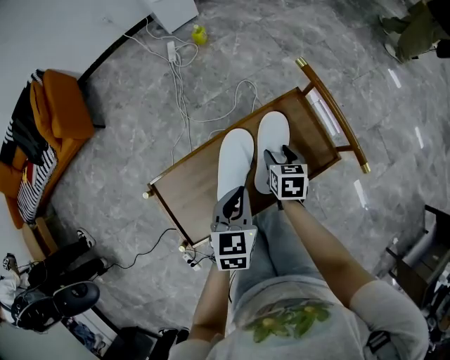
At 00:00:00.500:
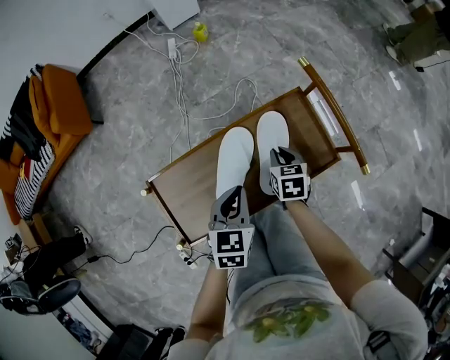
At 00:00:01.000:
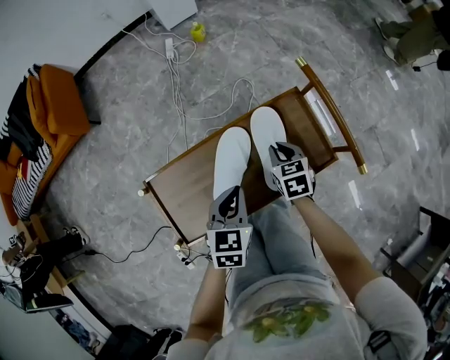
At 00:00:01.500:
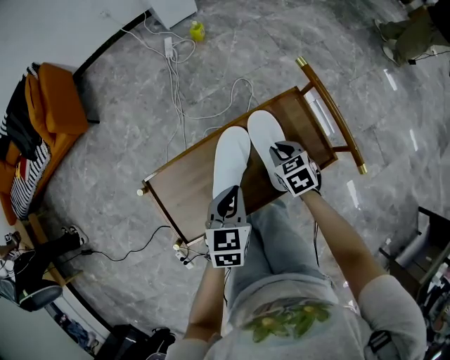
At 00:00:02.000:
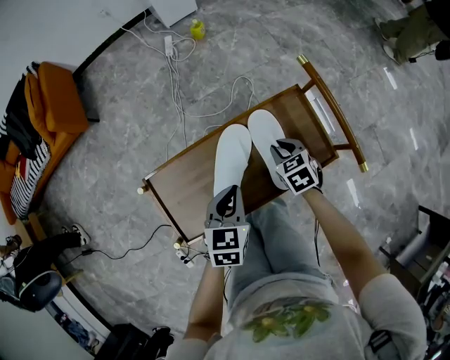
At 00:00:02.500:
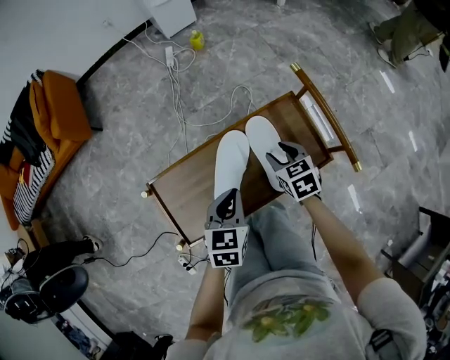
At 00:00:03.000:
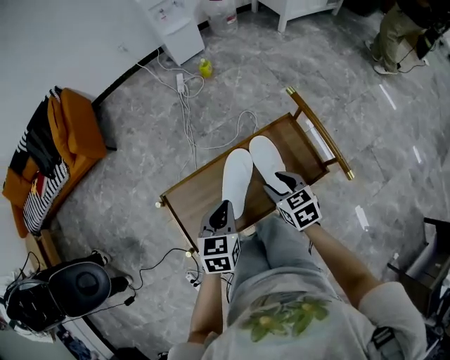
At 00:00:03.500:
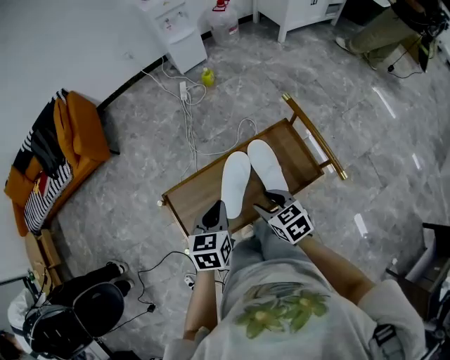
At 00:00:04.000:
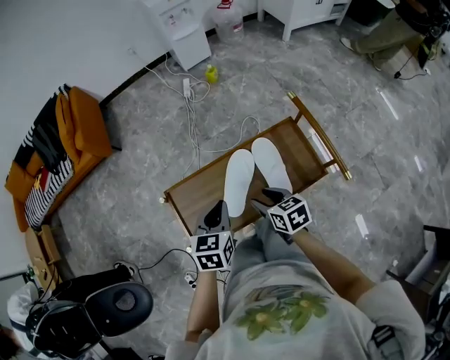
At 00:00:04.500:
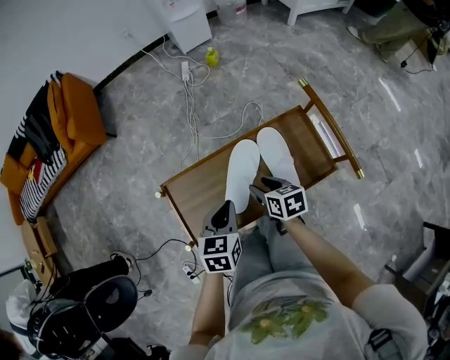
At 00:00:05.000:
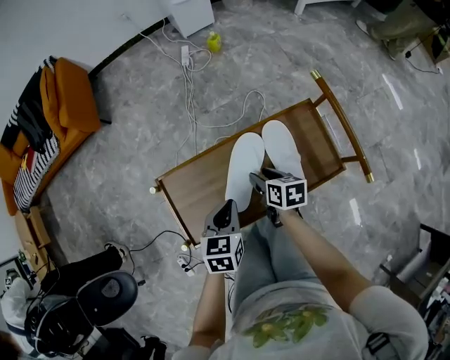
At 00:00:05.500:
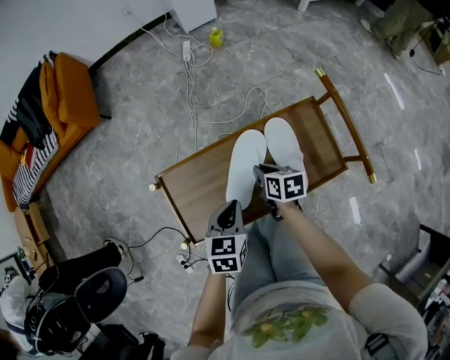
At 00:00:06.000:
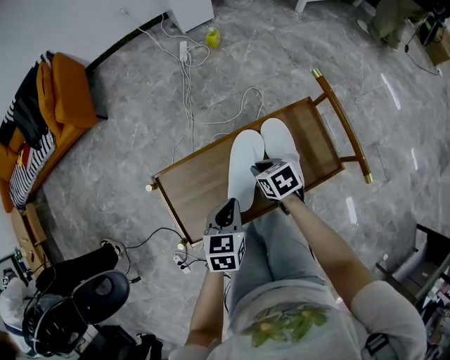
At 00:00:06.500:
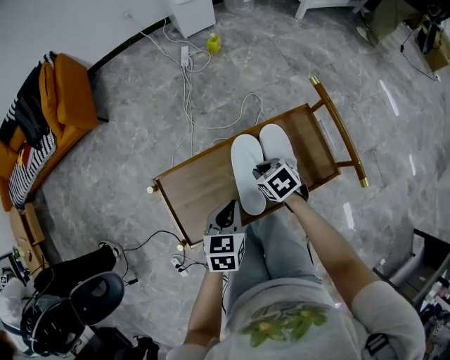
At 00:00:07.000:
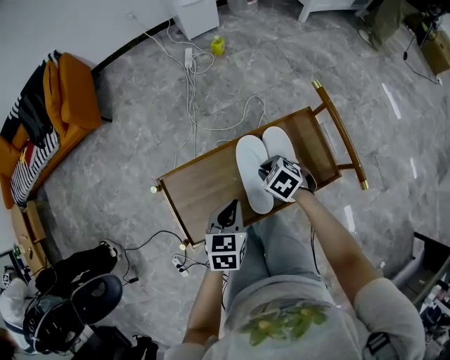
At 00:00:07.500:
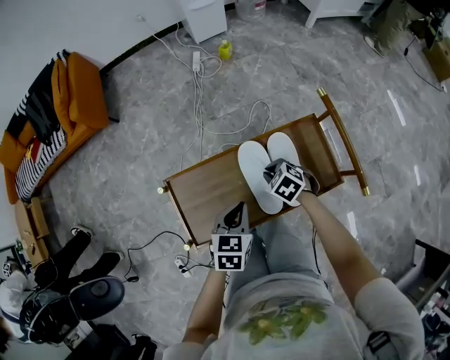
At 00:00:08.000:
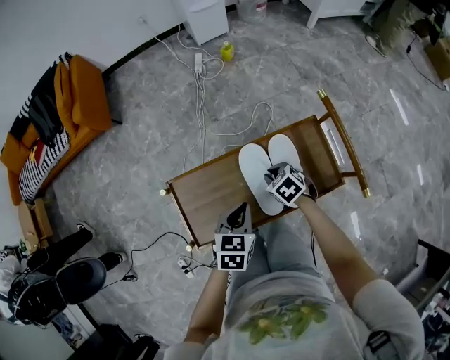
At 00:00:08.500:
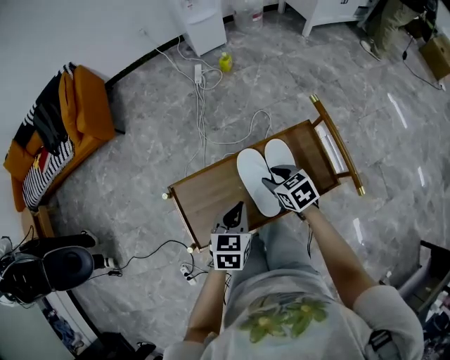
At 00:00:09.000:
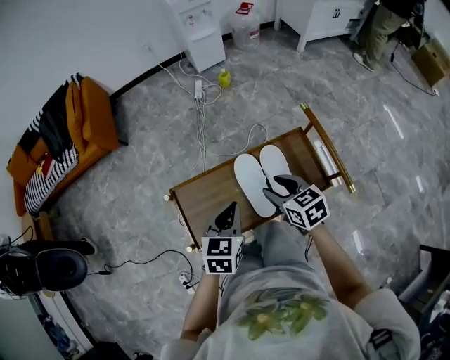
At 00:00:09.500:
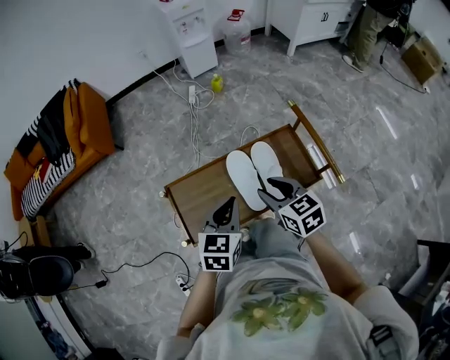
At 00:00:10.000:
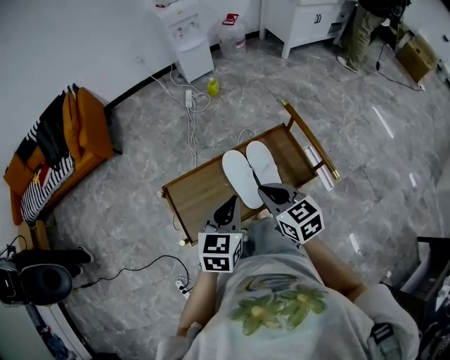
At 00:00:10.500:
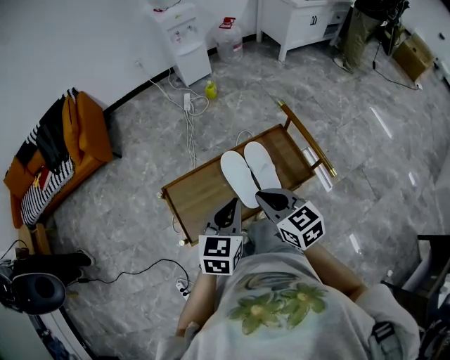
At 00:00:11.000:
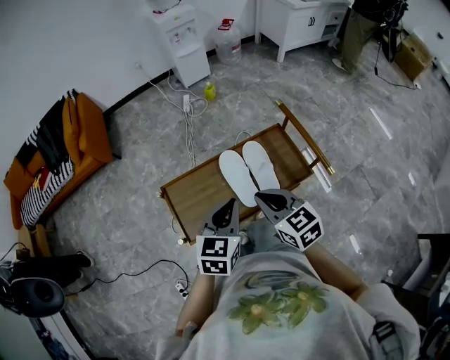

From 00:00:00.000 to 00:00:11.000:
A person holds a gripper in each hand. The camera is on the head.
From 00:00:00.000 to 00:00:02.000: The right gripper changes its angle by approximately 30 degrees, and closes up.
From 00:00:02.000 to 00:00:03.500: The left gripper is displaced upward by about 10 cm; the right gripper goes approximately 20 cm upward, backward and to the left, and opens up.
From 00:00:03.500 to 00:00:05.500: The left gripper shifts roughly 10 cm downward, while the right gripper shifts some 15 cm downward and forward, rotates approximately 30 degrees, and closes.
From 00:00:05.500 to 00:00:07.500: The right gripper twists about 50 degrees counterclockwise, seen from behind.
From 00:00:07.500 to 00:00:09.000: The right gripper is displaced upward by roughly 15 cm, swivels about 40 degrees, and opens its fingers, while the left gripper is displaced upward by about 10 cm.
From 00:00:09.000 to 00:00:11.000: The left gripper heads upward and backward, covering roughly 10 cm, while the right gripper goes approximately 15 cm backward and upward, and closes up.

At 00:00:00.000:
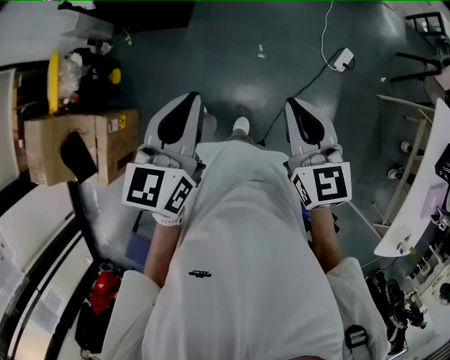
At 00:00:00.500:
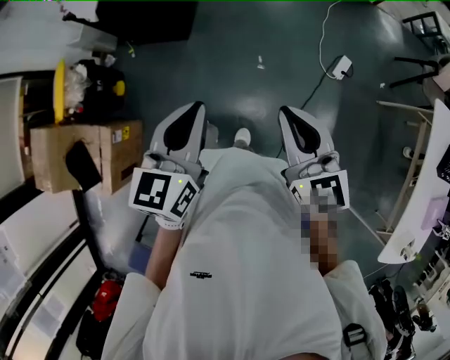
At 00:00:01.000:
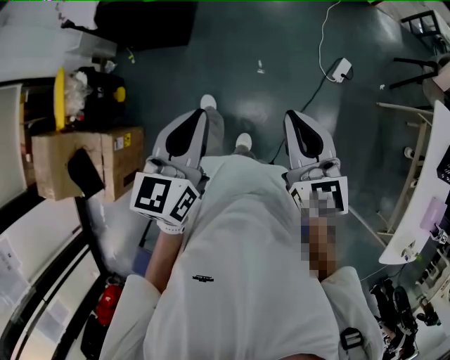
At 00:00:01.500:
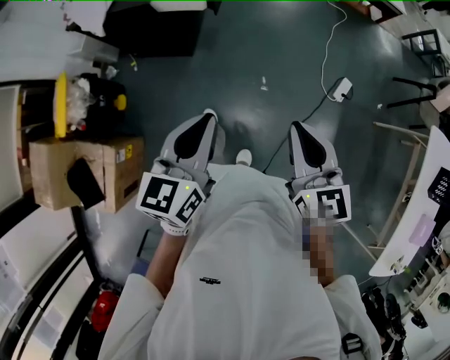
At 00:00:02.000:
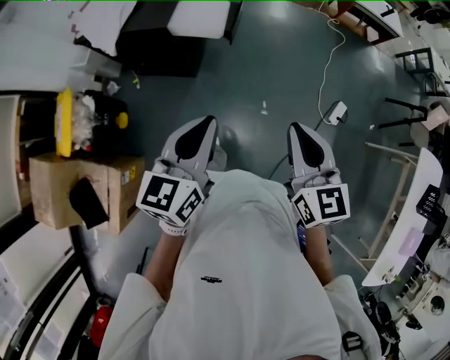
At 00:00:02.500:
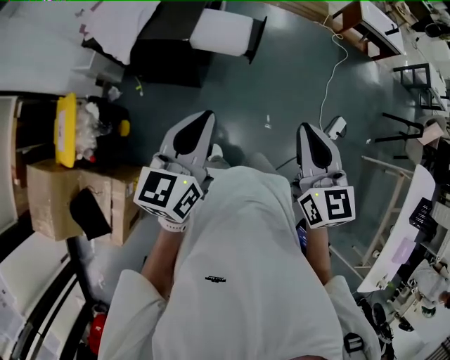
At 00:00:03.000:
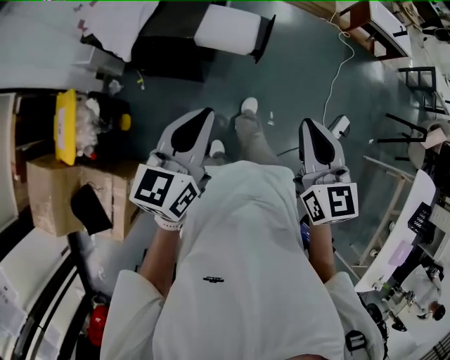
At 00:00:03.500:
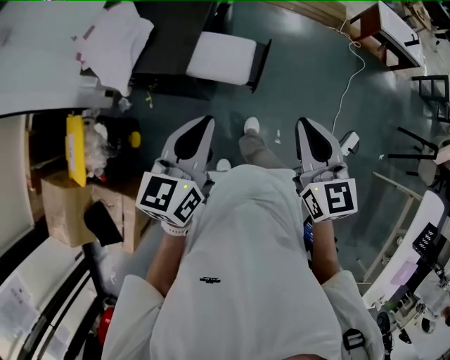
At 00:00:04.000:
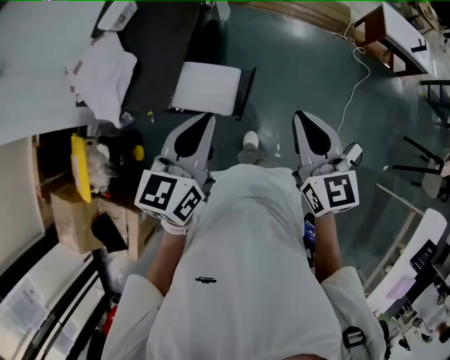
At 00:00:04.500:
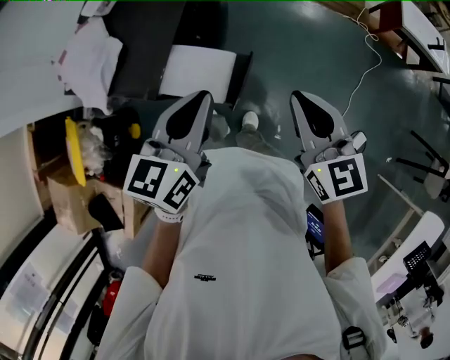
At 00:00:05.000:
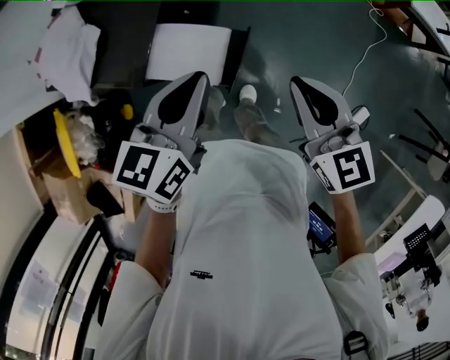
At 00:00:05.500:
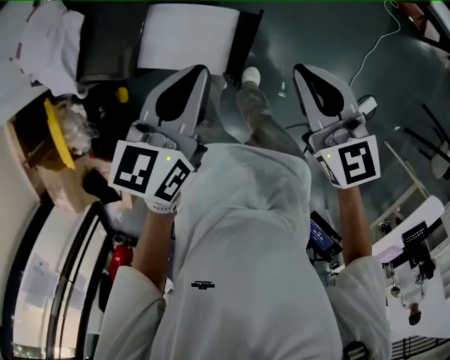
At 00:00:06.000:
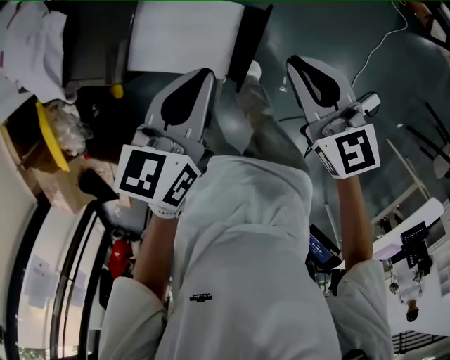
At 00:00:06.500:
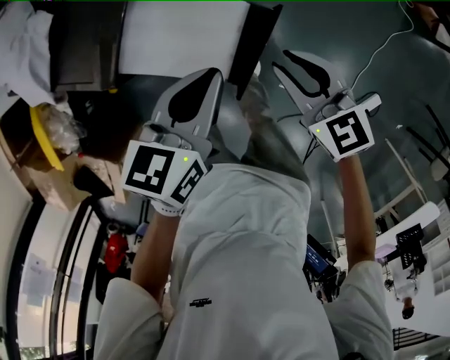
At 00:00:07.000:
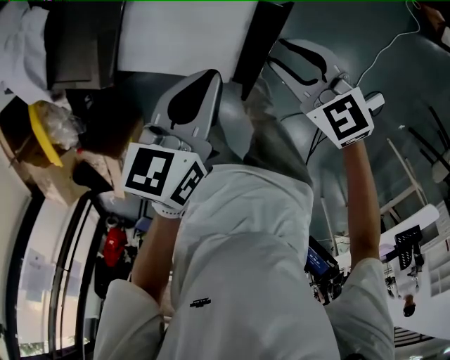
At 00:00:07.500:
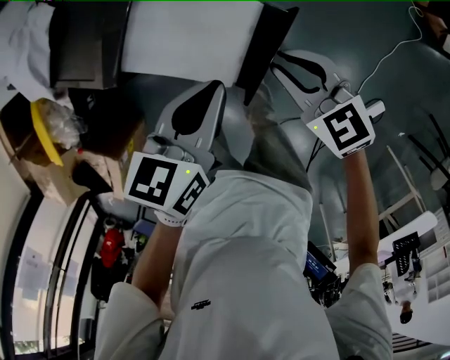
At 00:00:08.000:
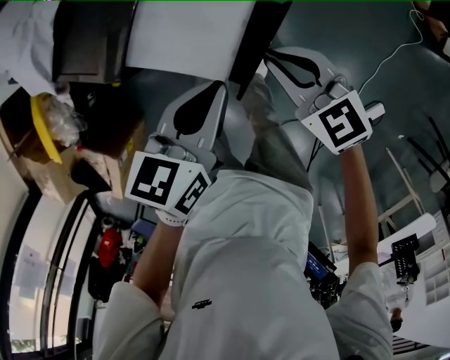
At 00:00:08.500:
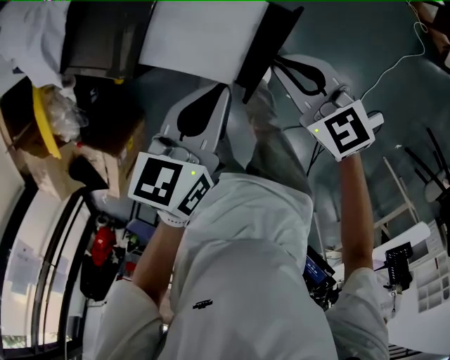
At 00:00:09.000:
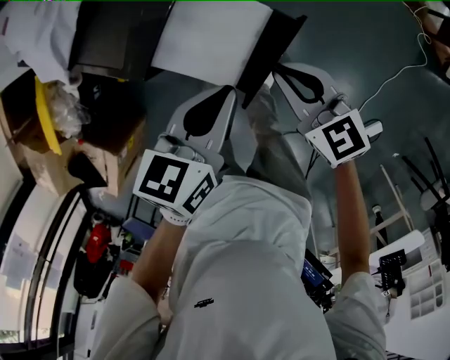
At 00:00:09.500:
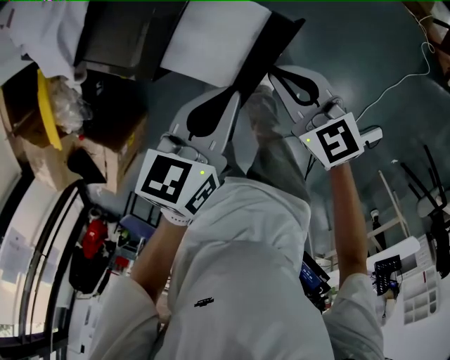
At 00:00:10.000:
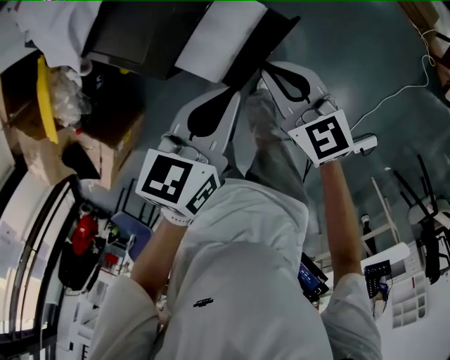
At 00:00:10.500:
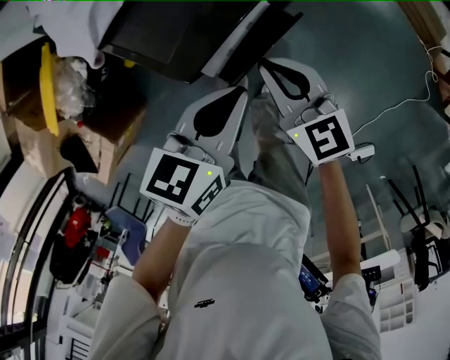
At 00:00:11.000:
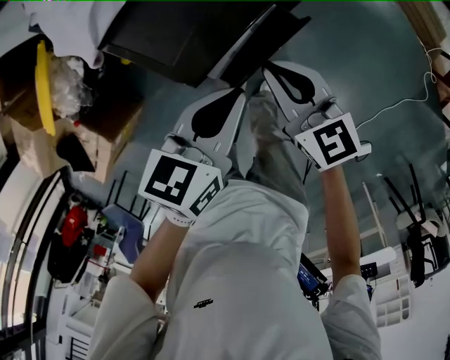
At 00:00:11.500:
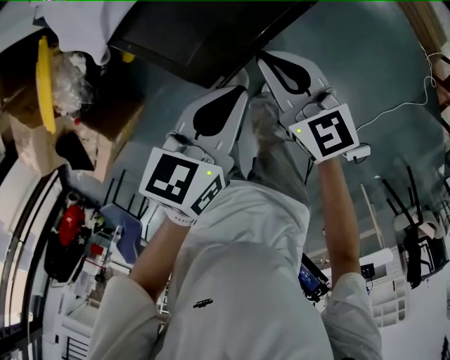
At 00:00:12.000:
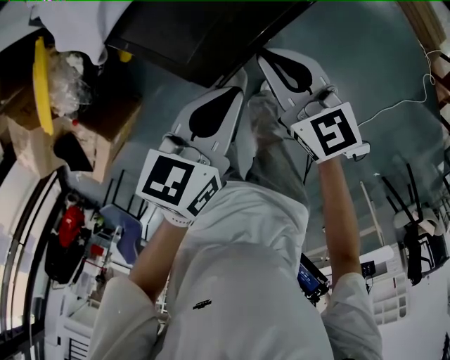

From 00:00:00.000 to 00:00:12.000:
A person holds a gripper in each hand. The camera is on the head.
From 00:00:00.000 to 00:00:02.000: Both grippers travel together forward and to the left, some 20 cm.
From 00:00:02.000 to 00:00:04.000: Both grippers move forward, some 35 cm.
From 00:00:04.000 to 00:00:06.000: The left gripper shifts approximately 15 cm downward; the right gripper travels downward and forward by roughly 20 cm, and swivels approximately 20 degrees.
From 00:00:06.000 to 00:00:08.000: The left gripper goes about 5 cm downward; the right gripper shifts some 10 cm downward and to the left, turns by approximately 30 degrees, and opens, then closes once more.
From 00:00:08.000 to 00:00:10.000: The left gripper shifts by approximately 5 cm. Meanwhile the right gripper travels to the left by roughly 10 cm.
From 00:00:10.000 to 00:00:12.000: The left gripper heads to the left, covering about 5 cm; the right gripper travels to the left and forward by approximately 10 cm.

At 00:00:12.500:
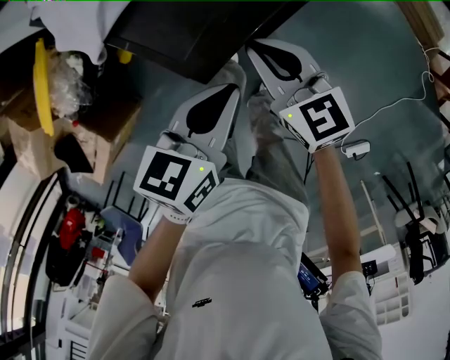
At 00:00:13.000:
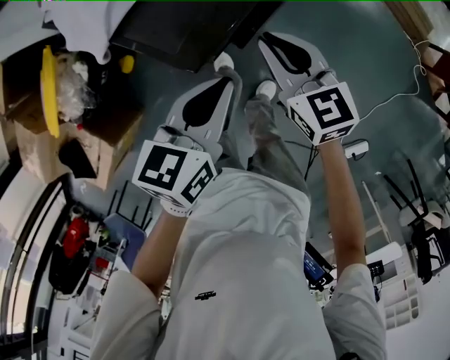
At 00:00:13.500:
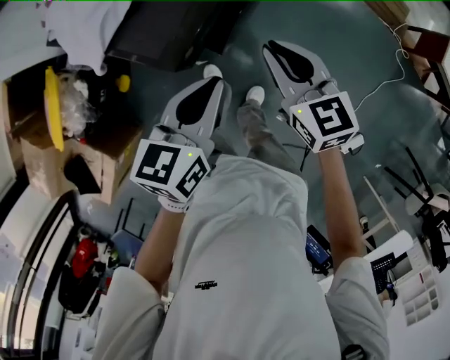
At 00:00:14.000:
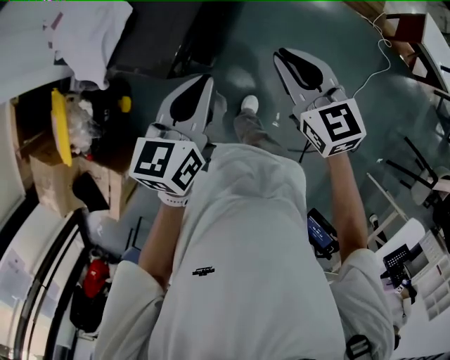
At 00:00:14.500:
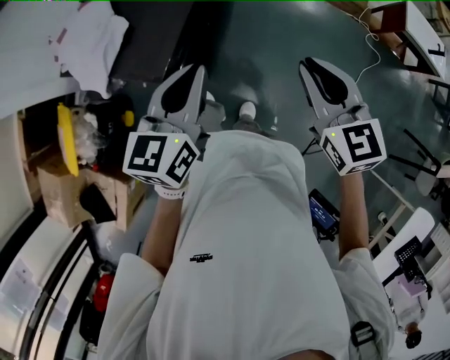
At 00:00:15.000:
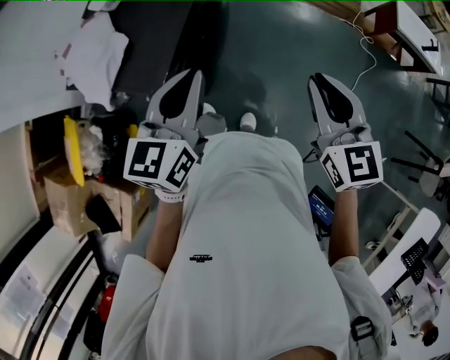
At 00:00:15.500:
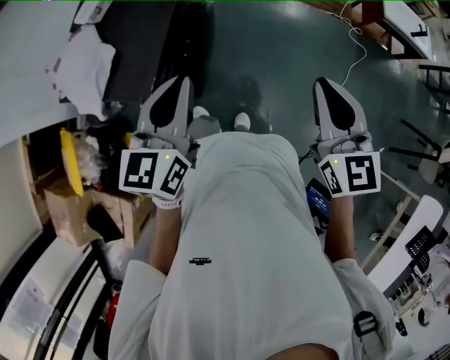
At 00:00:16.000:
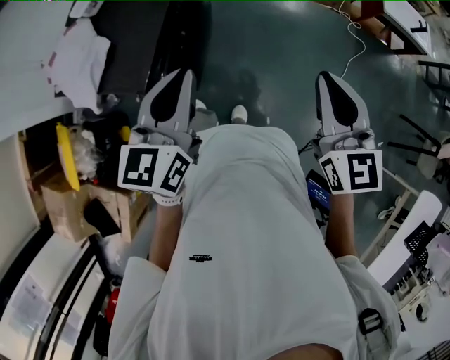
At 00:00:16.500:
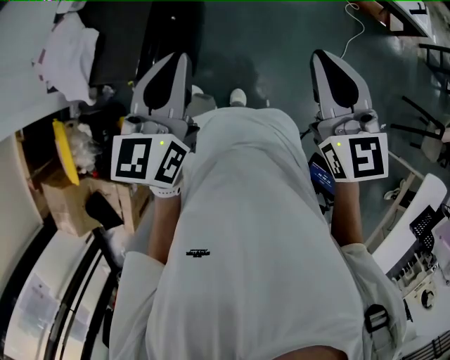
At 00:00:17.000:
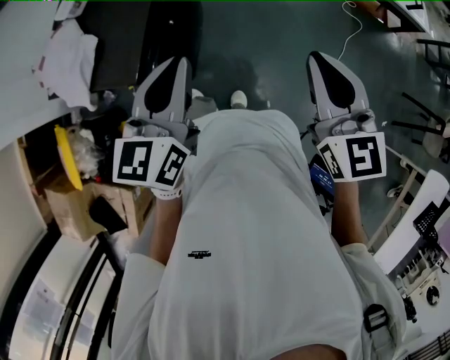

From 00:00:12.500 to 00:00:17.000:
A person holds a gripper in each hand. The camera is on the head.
From 00:00:12.500 to 00:00:14.500: The right gripper moves to the right, upward and backward, some 35 cm, and rotates about 30 degrees. The left gripper moves upward and to the right, some 20 cm, and turns by approximately 30 degrees.
From 00:00:14.500 to 00:00:17.000: The right gripper travels to the right, backward and upward by roughly 10 cm, while the left gripper goes roughly 5 cm to the right.
